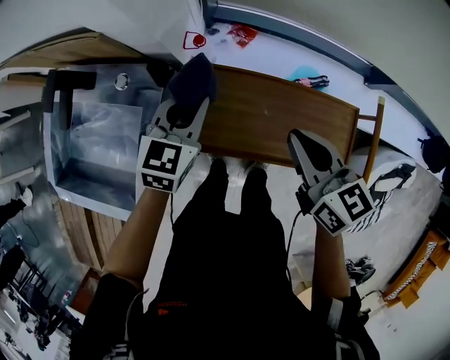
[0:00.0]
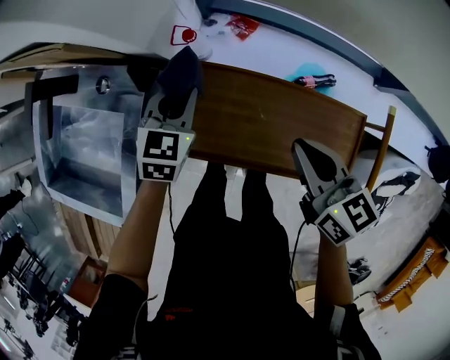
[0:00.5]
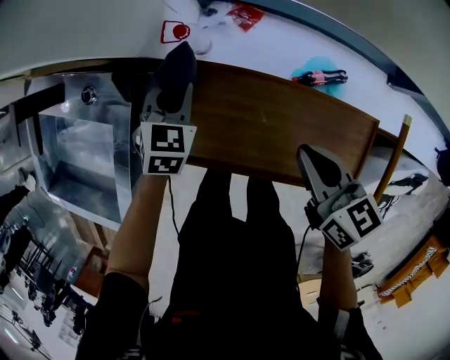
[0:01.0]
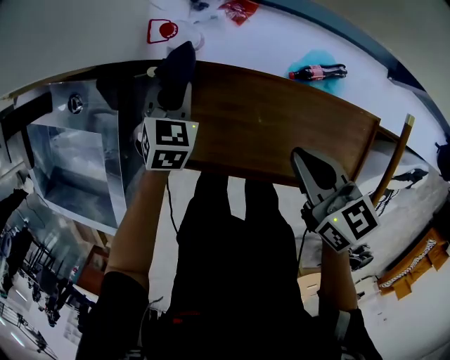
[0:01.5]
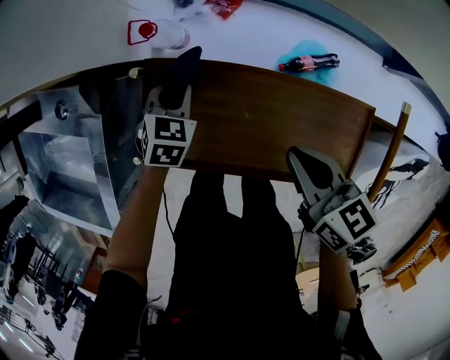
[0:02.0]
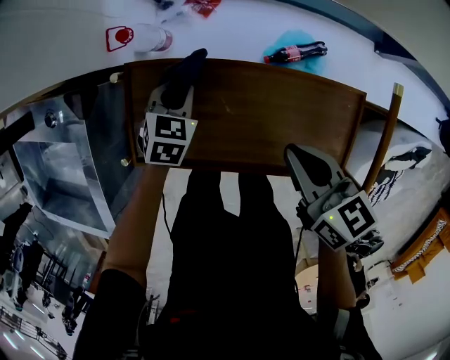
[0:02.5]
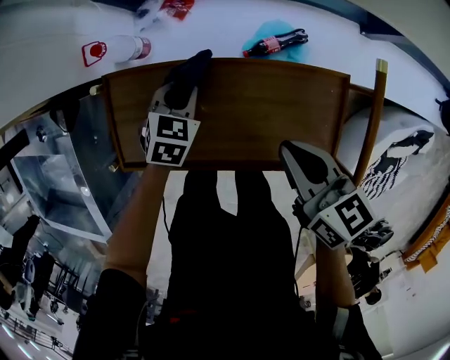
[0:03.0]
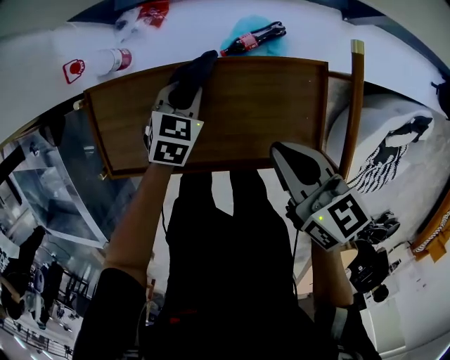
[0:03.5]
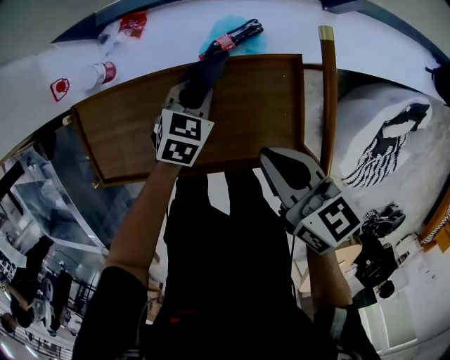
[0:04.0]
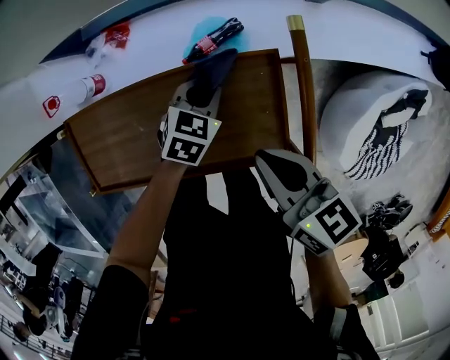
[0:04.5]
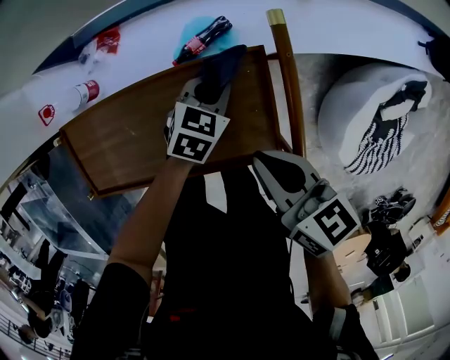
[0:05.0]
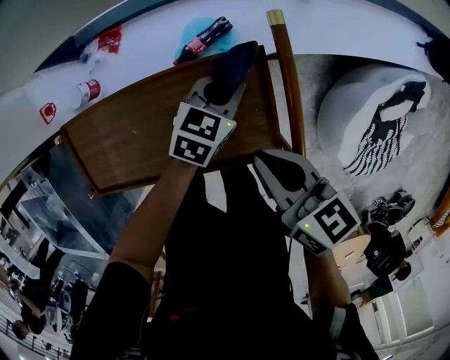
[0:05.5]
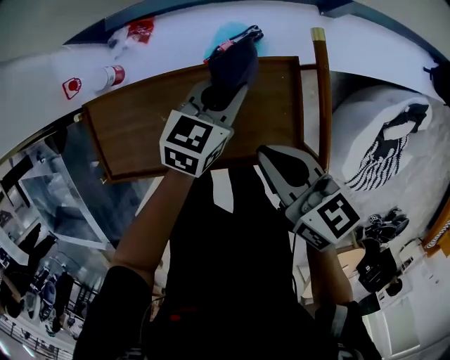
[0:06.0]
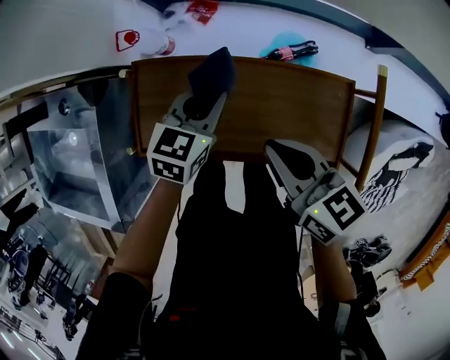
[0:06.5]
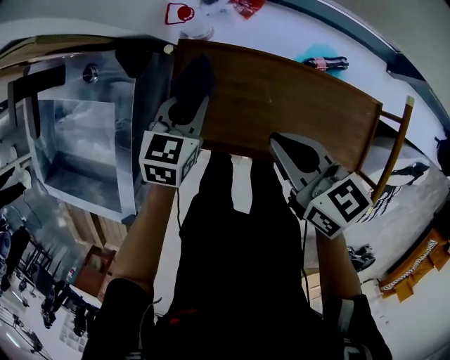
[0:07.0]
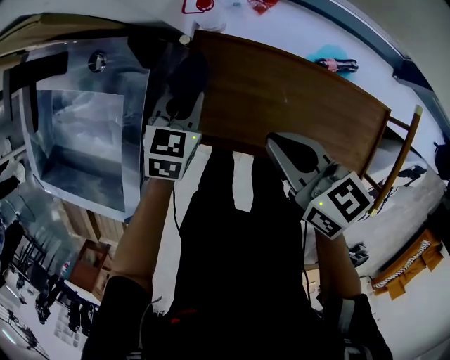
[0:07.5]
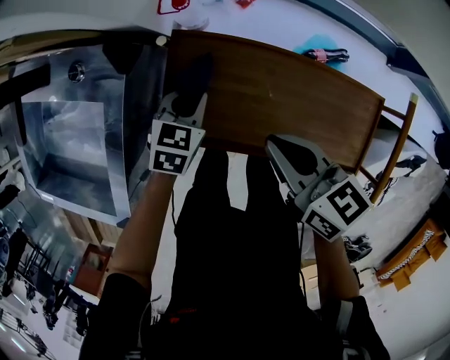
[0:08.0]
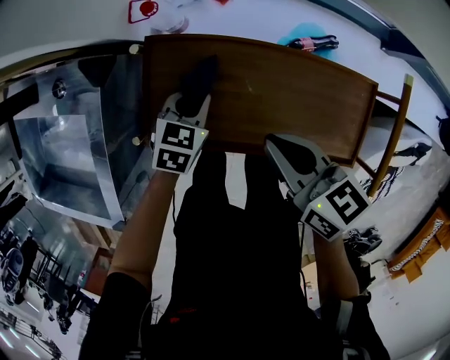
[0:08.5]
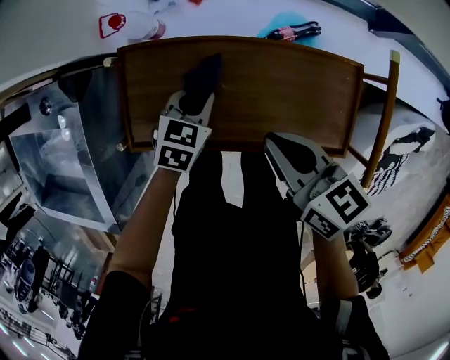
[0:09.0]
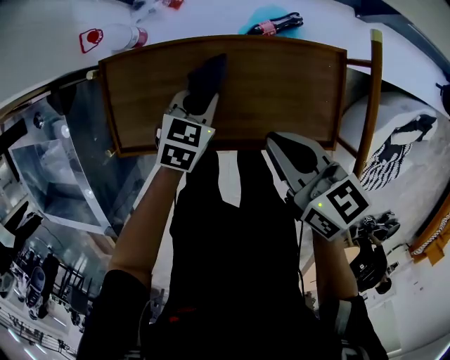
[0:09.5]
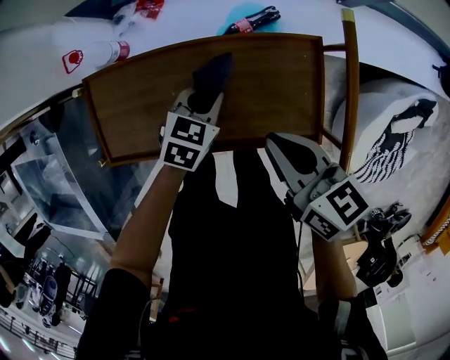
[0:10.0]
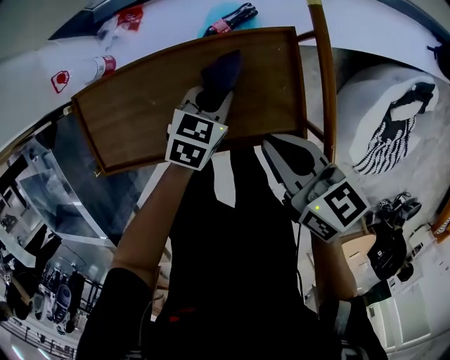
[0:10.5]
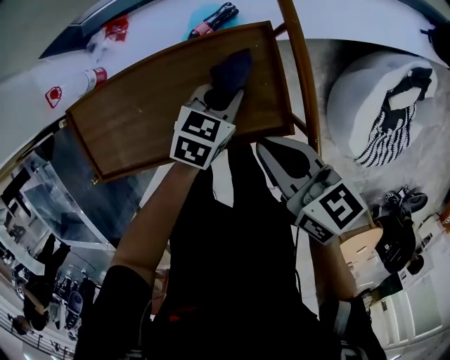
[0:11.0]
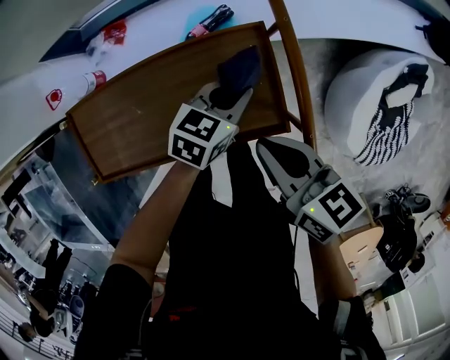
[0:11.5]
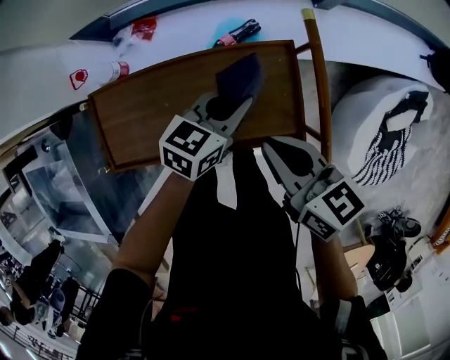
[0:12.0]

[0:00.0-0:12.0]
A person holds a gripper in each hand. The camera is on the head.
0:00.0 to 0:02.0: The left gripper goes roughly 20 cm downward, and rotates approximately 30 degrees; the right gripper is displaced downward and to the right by about 15 cm.
0:02.0 to 0:04.0: The left gripper shifts about 30 cm to the right, and swivels roughly 20 degrees. Meanwhile the right gripper moves to the right, approximately 15 cm.
0:04.0 to 0:06.0: The left gripper shifts some 15 cm upward and to the right, and turns by about 20 degrees.
0:06.0 to 0:08.0: The left gripper moves some 40 cm, and turns by some 30 degrees, while the right gripper changes place by some 30 cm.
0:08.0 to 0:10.0: The grippers both shift to the right by about 25 cm. The left gripper rotates some 20 degrees.
0:10.0 to 0:12.0: The left gripper goes roughly 15 cm upward and to the right, and rotates roughly 20 degrees.

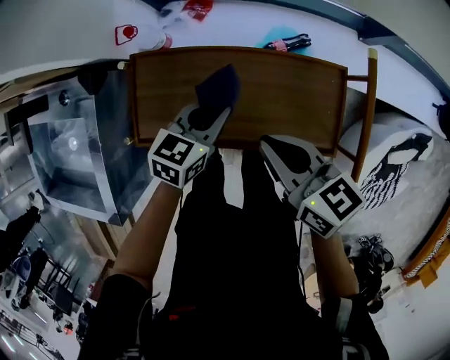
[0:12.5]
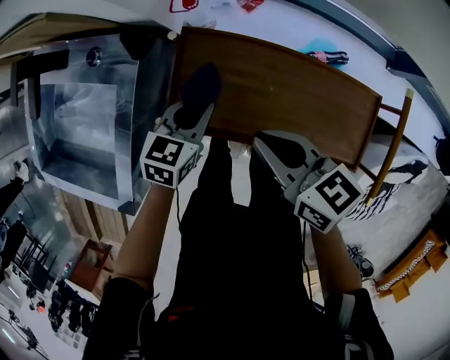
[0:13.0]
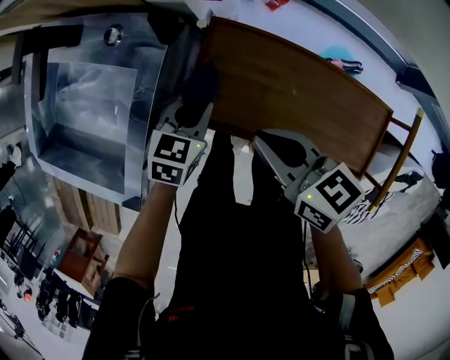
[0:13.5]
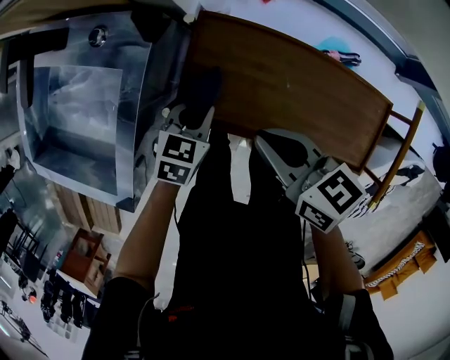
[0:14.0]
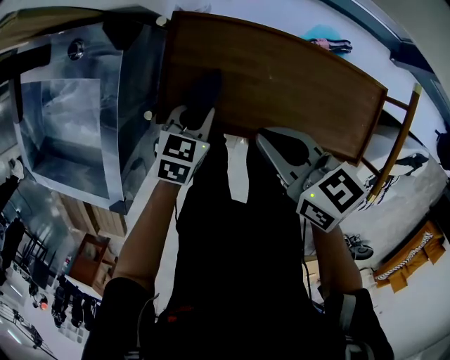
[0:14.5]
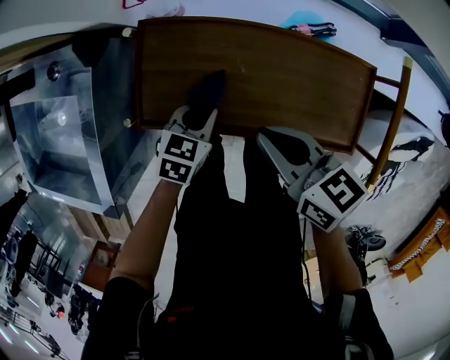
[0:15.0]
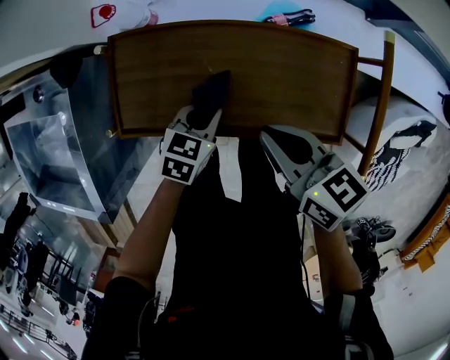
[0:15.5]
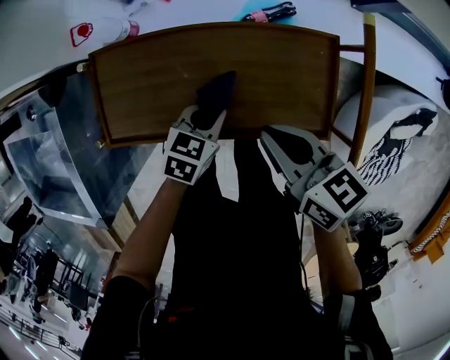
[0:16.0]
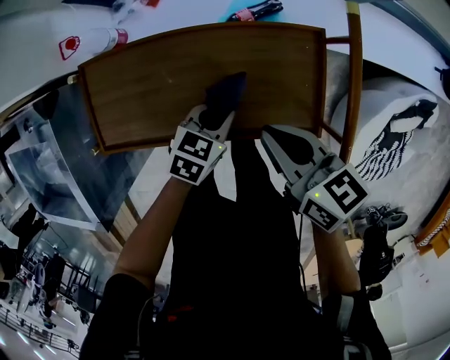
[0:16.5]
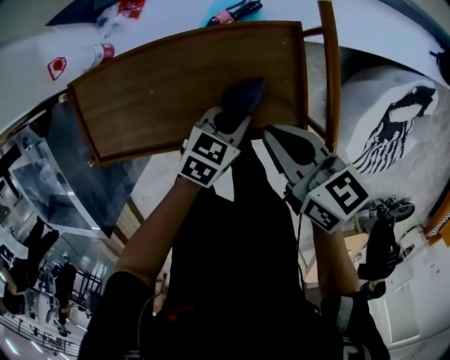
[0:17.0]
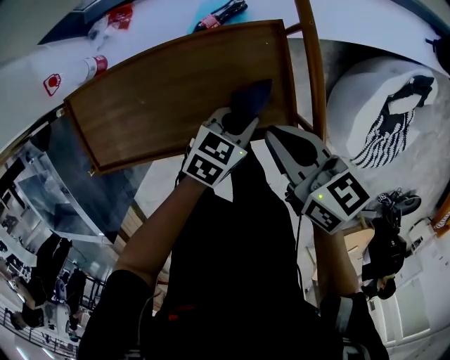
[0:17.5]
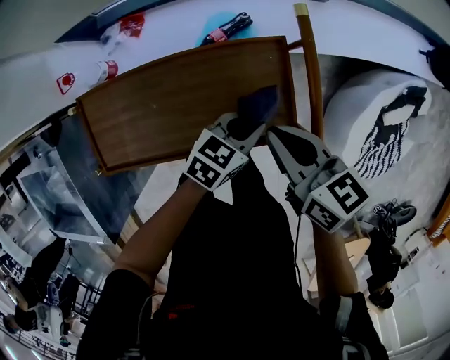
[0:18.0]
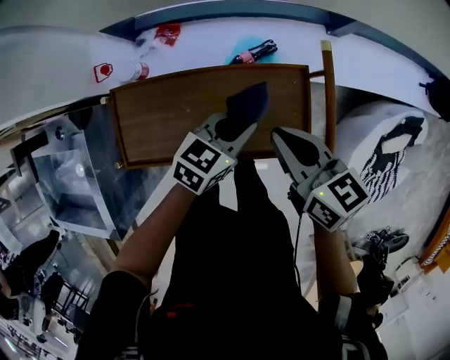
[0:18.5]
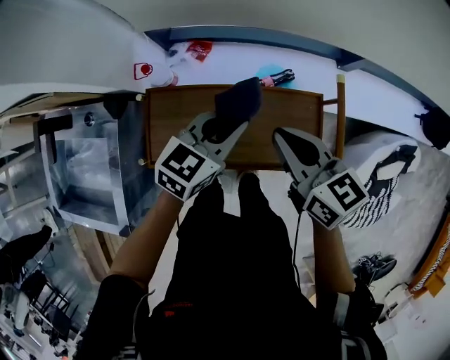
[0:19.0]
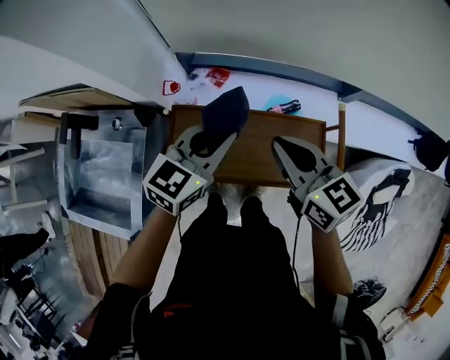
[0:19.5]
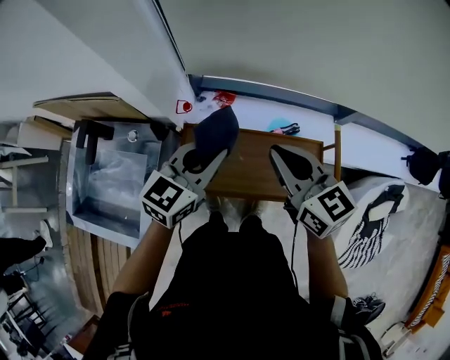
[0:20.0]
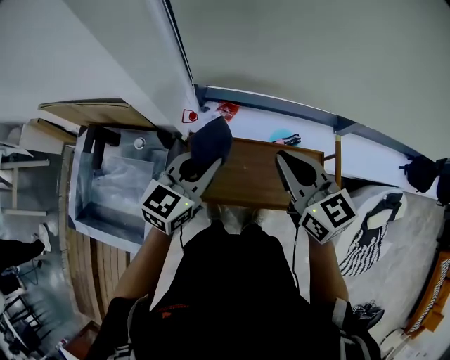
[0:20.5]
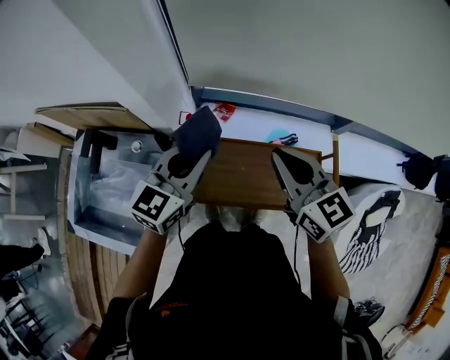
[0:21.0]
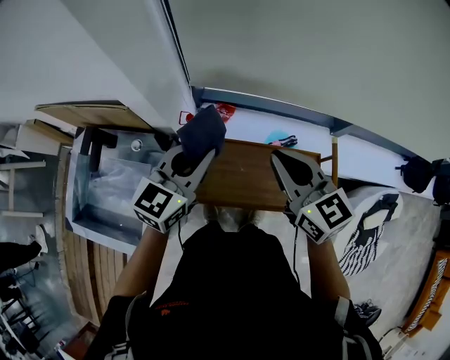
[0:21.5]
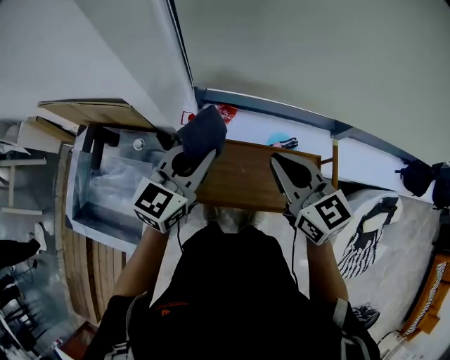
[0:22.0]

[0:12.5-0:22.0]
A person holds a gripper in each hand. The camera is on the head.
0:12.5 to 0:14.5: The right gripper goes roughly 15 cm to the left. The left gripper goes about 20 cm to the left and downward.
0:14.5 to 0:16.5: Both grippers travel together to the right, about 25 cm. The left gripper rotates roughly 20 degrees.
0:16.5 to 0:18.0: The left gripper moves to the right and upward, some 15 cm, while the right gripper moves to the right, roughly 5 cm.
0:18.0 to 0:20.0: The grippers both shift to the left and upward by some 40 cm. The right gripper turns by approximately 30 degrees. Meanwhile the left gripper turns by about 40 degrees.
0:20.0 to 0:22.0: The left gripper moves to the left, some 5 cm.

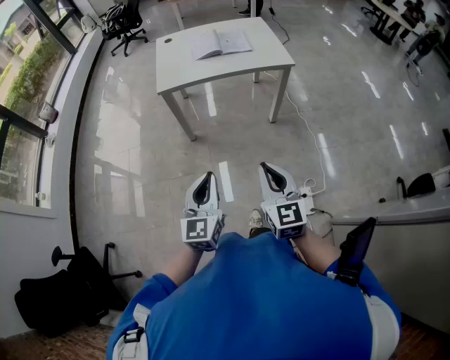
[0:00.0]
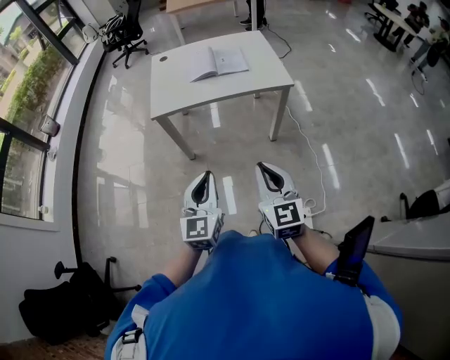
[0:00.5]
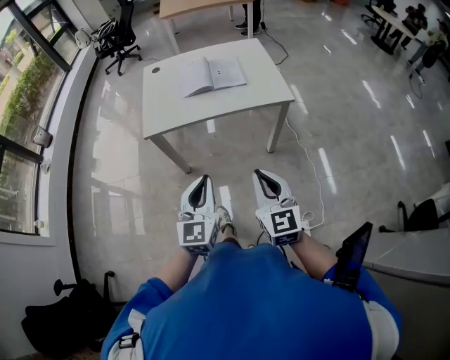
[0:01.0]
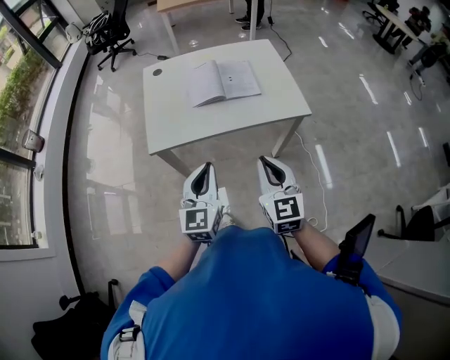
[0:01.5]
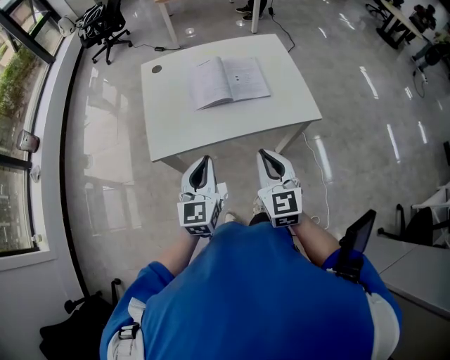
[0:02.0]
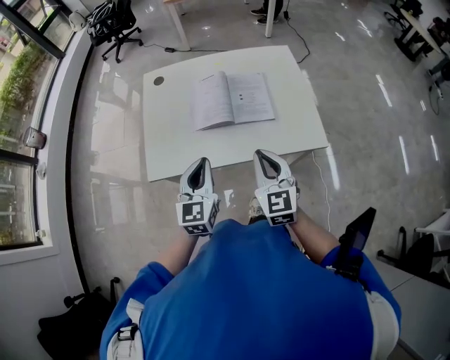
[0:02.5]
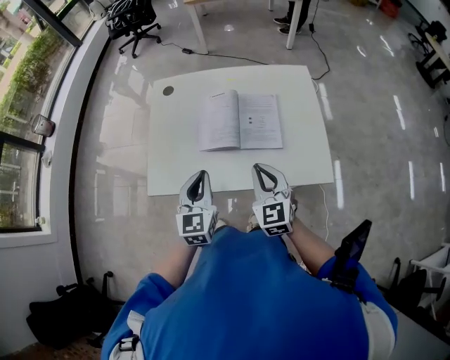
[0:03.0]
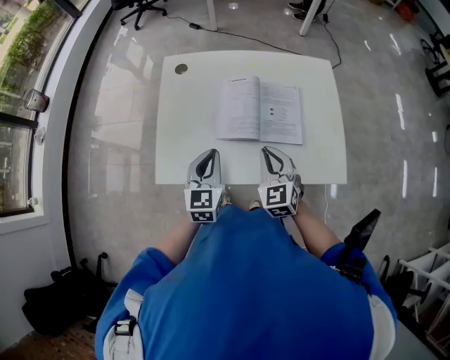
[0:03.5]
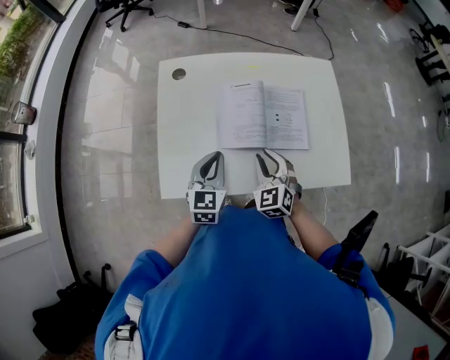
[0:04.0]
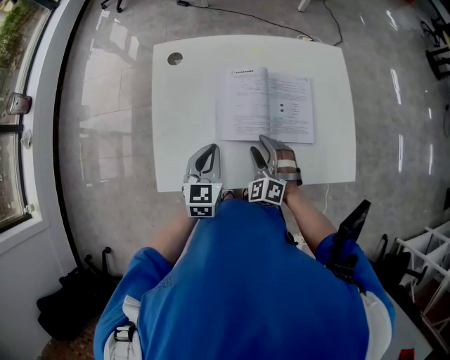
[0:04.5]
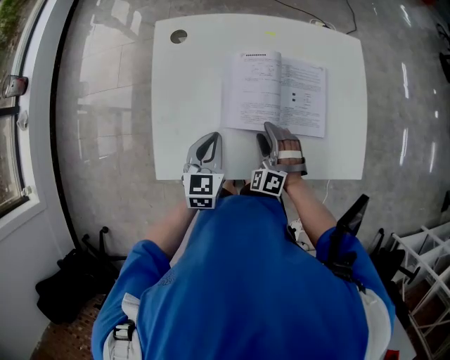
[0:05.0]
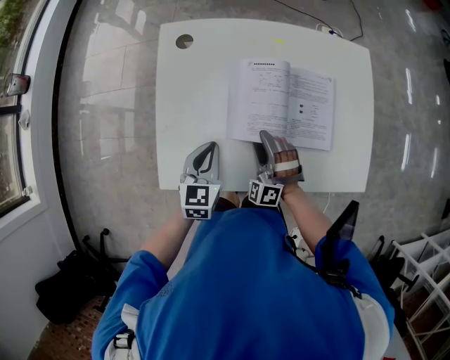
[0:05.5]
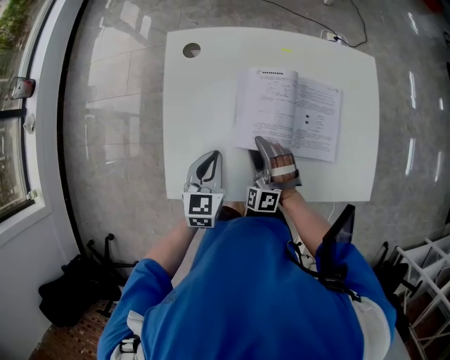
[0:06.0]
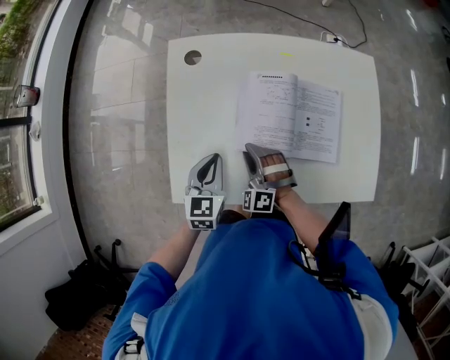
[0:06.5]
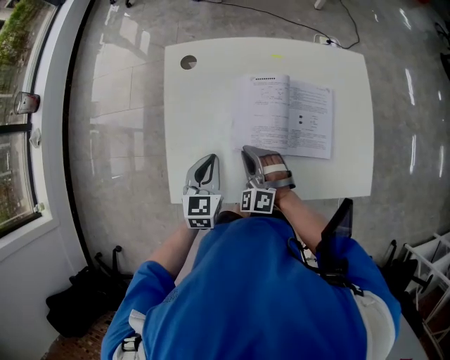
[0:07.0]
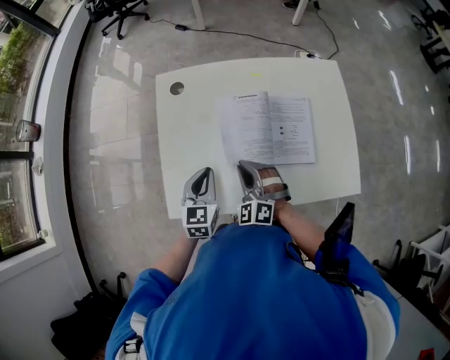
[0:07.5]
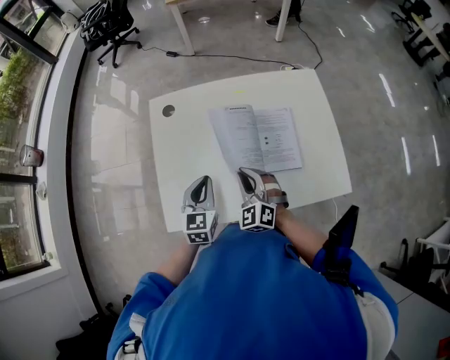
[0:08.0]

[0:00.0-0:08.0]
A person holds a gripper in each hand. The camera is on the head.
0:00.0 to 0:02.0: Both grippers are carried forward, some 50 cm.
0:02.0 to 0:04.0: The left gripper travels forward by about 25 cm, while the right gripper moves forward and downward, approximately 30 cm, and swivels some 30 degrees.
0:04.0 to 0:06.0: The right gripper travels downward, to the left and forward by about 15 cm, rotates about 40 degrees, and opens up. The left gripper shifts approximately 10 cm downward and to the left.
0:06.0 to 0:08.0: The two grippers go roughly 10 cm upward. The right gripper swivels some 30 degrees, and closes its fingers.
